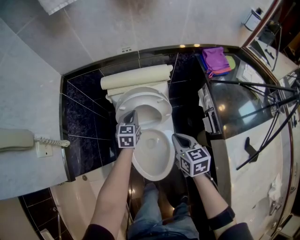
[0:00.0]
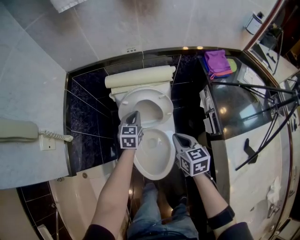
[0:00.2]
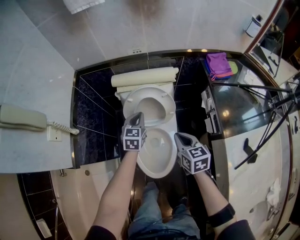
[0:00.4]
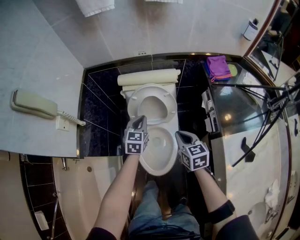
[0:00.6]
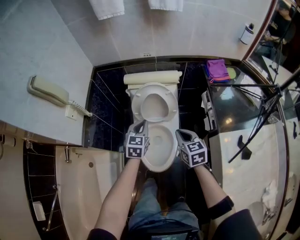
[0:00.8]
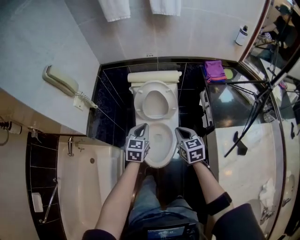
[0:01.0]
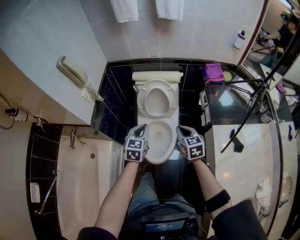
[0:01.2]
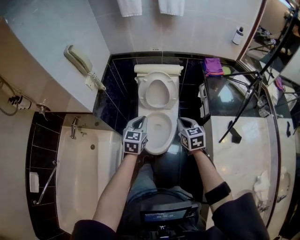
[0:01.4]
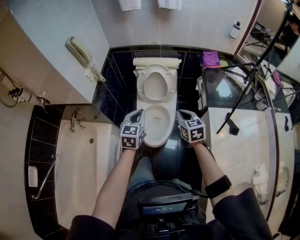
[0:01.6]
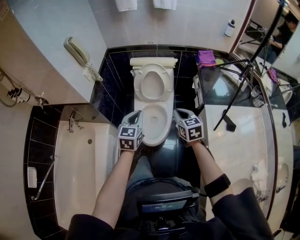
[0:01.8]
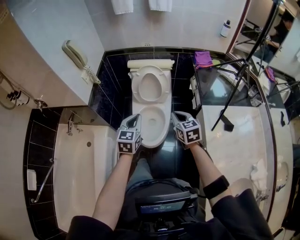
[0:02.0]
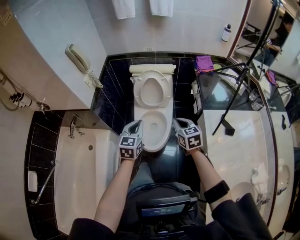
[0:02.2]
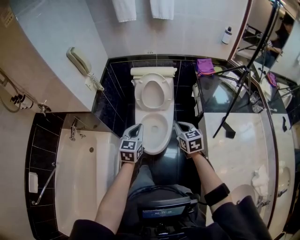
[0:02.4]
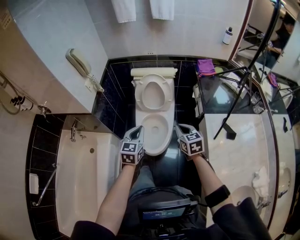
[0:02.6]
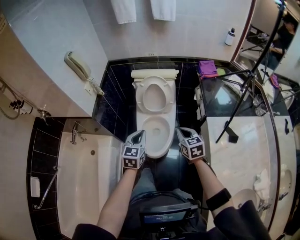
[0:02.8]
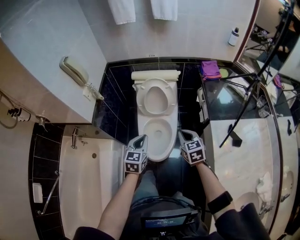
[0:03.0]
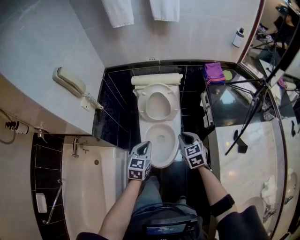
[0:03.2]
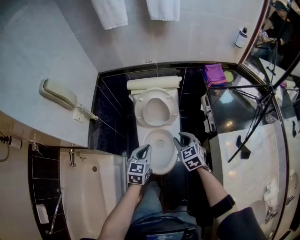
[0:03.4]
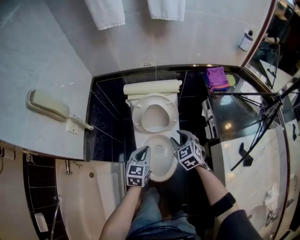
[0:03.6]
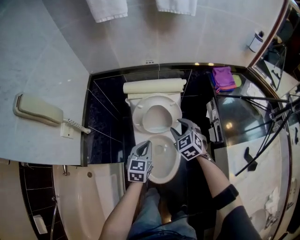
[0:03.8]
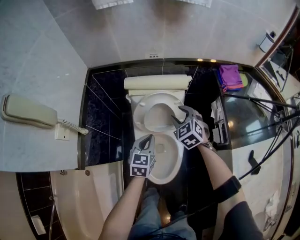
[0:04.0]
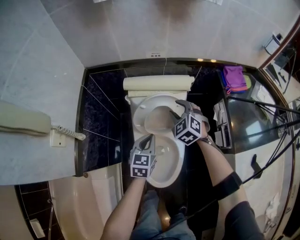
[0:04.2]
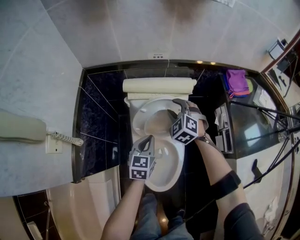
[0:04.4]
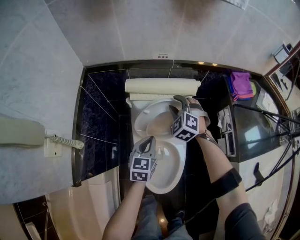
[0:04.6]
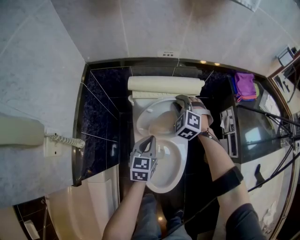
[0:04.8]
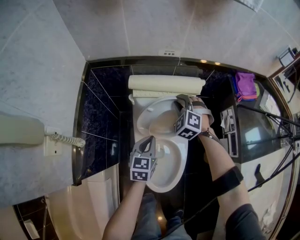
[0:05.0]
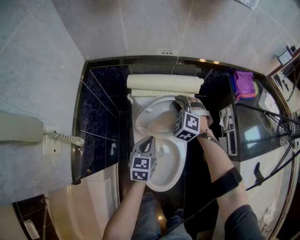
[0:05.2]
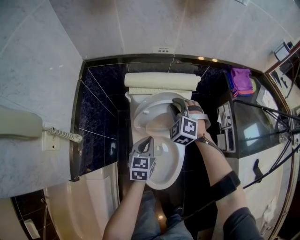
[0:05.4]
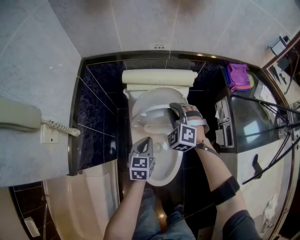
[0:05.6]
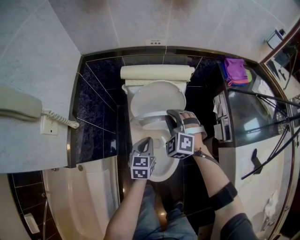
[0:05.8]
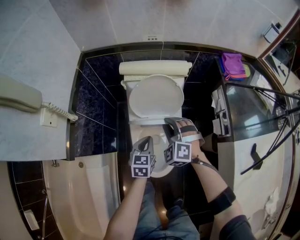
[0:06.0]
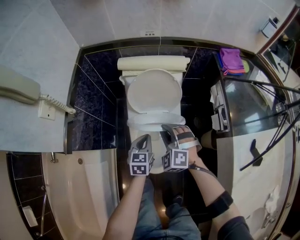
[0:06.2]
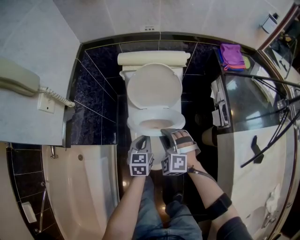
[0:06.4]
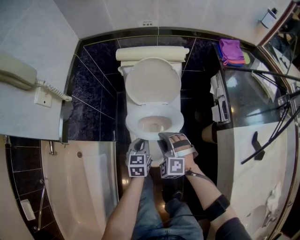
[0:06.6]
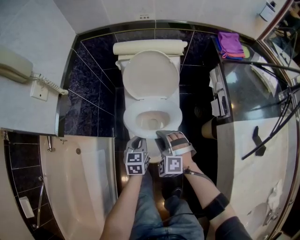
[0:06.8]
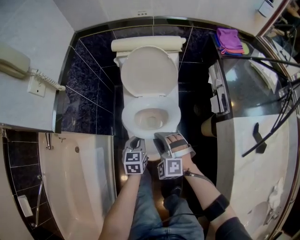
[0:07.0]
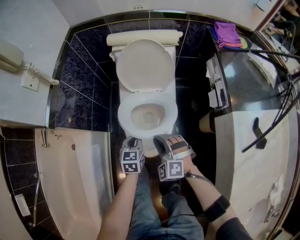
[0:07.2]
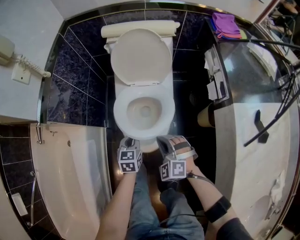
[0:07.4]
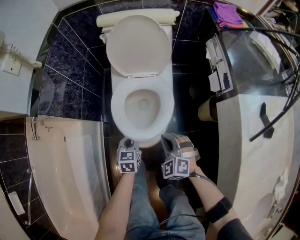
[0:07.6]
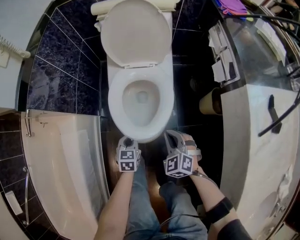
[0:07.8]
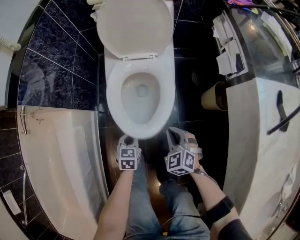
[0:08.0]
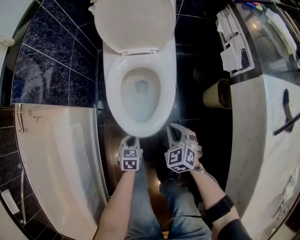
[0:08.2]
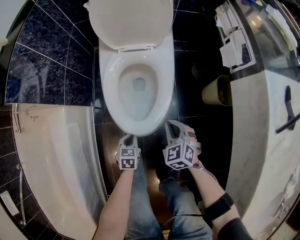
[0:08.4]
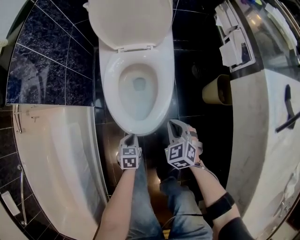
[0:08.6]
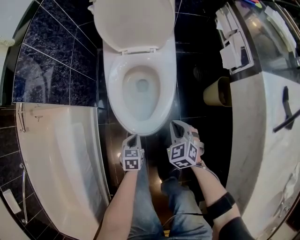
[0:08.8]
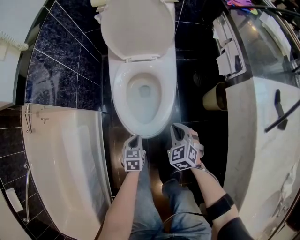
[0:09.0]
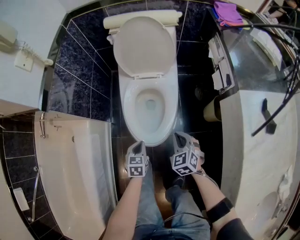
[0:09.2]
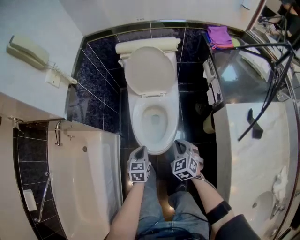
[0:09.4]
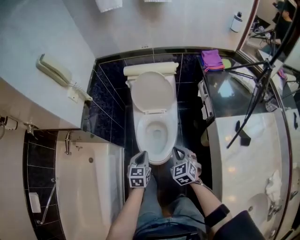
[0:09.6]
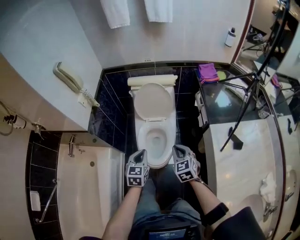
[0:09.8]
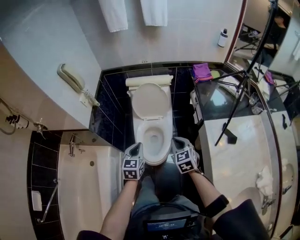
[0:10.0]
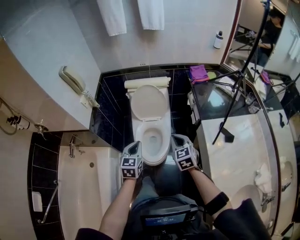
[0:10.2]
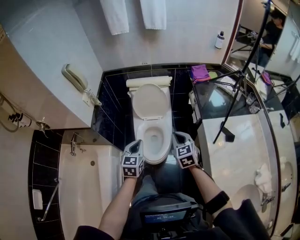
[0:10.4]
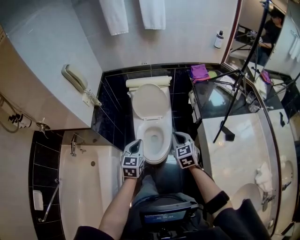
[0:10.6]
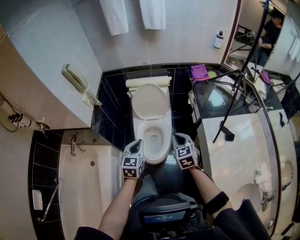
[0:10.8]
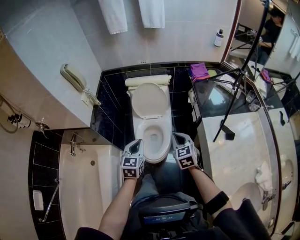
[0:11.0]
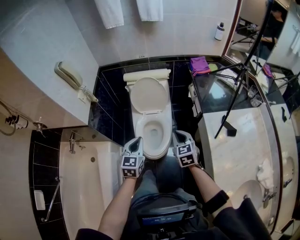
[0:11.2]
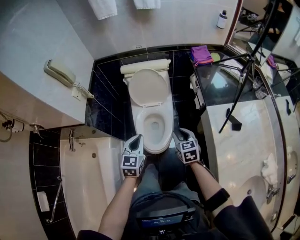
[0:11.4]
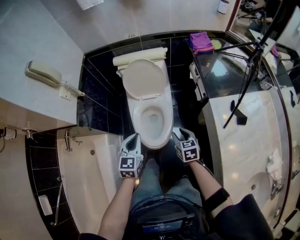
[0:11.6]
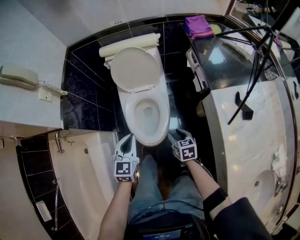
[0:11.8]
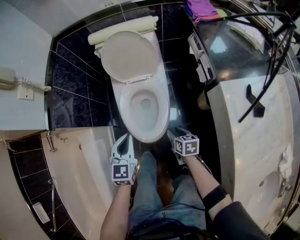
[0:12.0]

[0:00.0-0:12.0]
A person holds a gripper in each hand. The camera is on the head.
0:00.0 to 0:01.6: The right gripper is displaced backward and upward by roughly 25 cm; the left gripper is displaced backward and upward by about 50 cm.
0:01.6 to 0:03.0: The grippers move only a little.
0:03.0 to 0:04.4: The right gripper is displaced forward by roughly 40 cm, rolls counterclockwise, seen from behind, by roughly 40 degrees, and opens its fingers; the left gripper travels forward and downward by roughly 35 cm.
0:04.4 to 0:06.0: The left gripper heads backward and downward, covering about 10 cm. The right gripper goes about 20 cm backward, and closes up.
0:06.0 to 0:07.6: Both grippers travel together backward and downward, approximately 30 cm.
0:07.6 to 0:09.0: The left gripper shifts approximately 15 cm downward and backward, while the right gripper shifts approximately 10 cm downward, and rotates approximately 20 degrees.
0:09.0 to 0:10.4: The grippers both shift upward by approximately 50 cm. The right gripper turns by about 20 degrees; the left gripper turns by about 30 degrees.
0:10.4 to 0:12.0: The right gripper travels downward by approximately 40 cm, twists some 40 degrees clockwise, seen from behind, and opens up; the left gripper is displaced downward by roughly 20 cm.

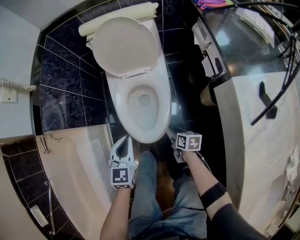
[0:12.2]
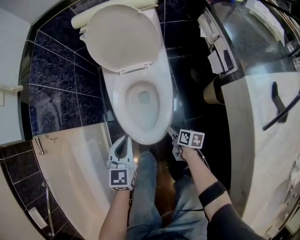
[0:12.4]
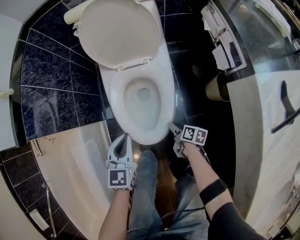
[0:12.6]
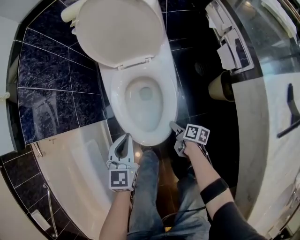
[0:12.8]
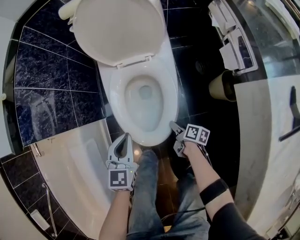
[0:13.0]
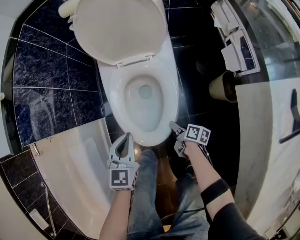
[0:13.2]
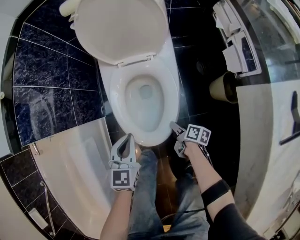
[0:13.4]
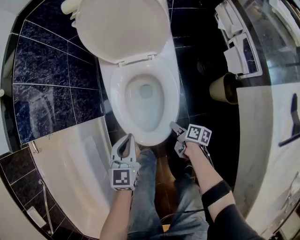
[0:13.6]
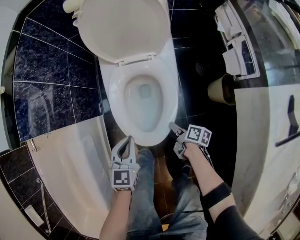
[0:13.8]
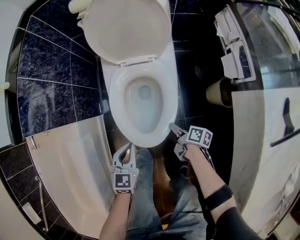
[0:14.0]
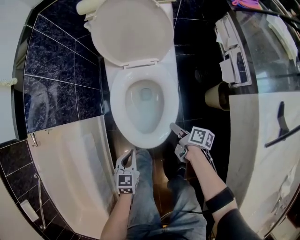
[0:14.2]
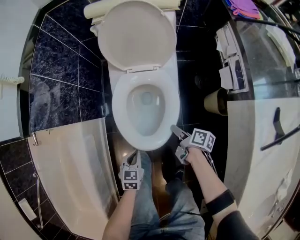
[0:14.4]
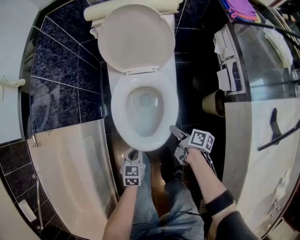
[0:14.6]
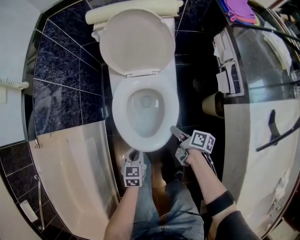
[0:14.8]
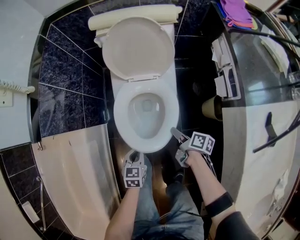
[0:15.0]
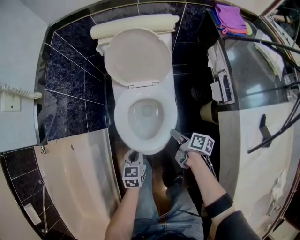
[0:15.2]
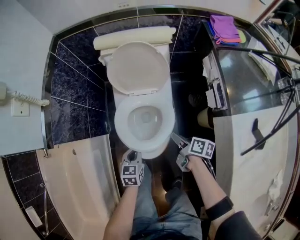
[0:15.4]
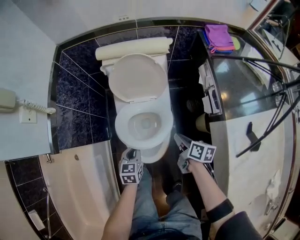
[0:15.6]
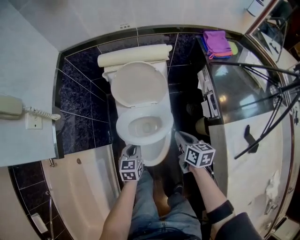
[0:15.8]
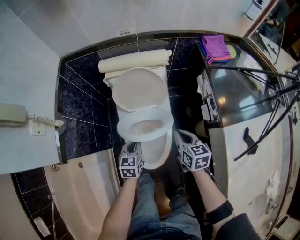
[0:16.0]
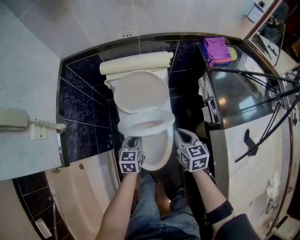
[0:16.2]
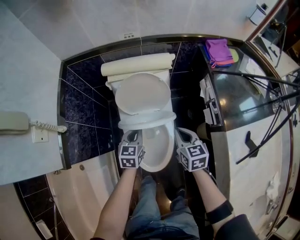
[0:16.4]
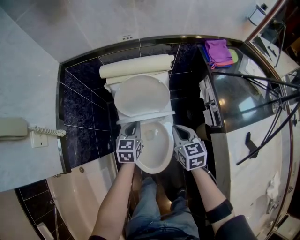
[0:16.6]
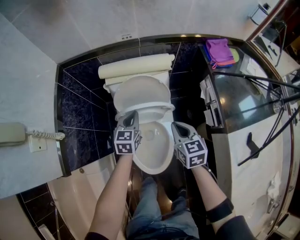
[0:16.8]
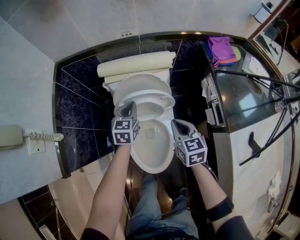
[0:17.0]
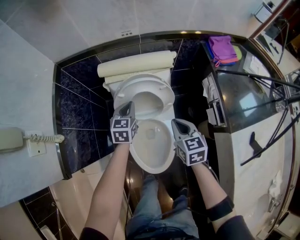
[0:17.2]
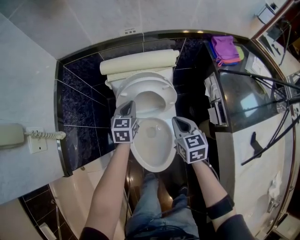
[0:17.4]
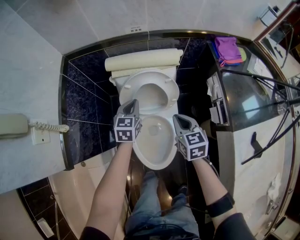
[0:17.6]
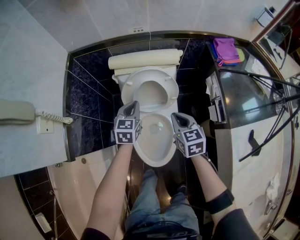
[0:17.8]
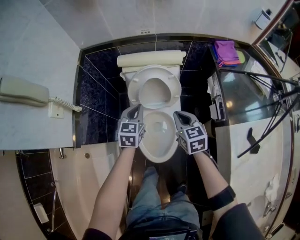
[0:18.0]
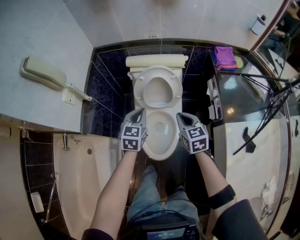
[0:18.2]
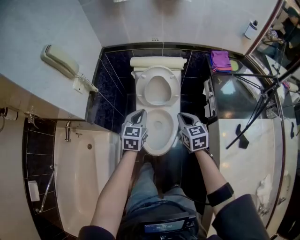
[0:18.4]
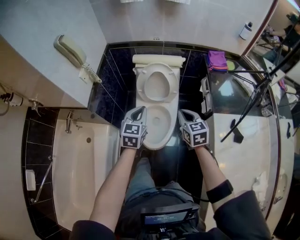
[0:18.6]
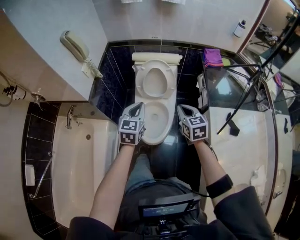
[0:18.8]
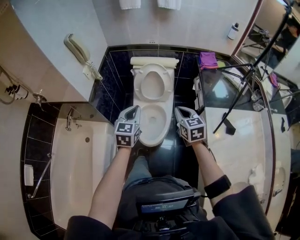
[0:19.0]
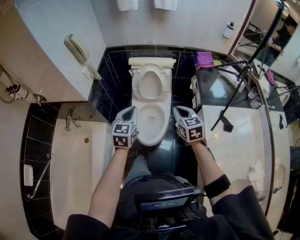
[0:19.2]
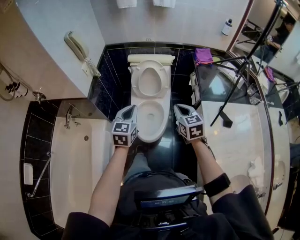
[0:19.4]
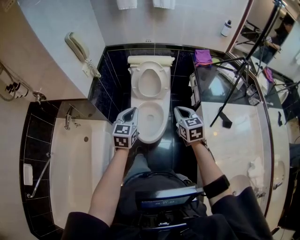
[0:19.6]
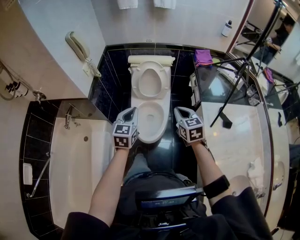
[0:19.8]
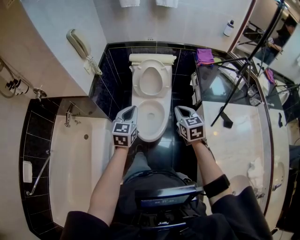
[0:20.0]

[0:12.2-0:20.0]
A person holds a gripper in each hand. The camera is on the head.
0:12.2 to 0:13.8: The grippers both shift downward by roughly 10 cm. The right gripper changes its angle by some 30 degrees.
0:13.8 to 0:15.4: The left gripper moves upward, some 5 cm, while the right gripper heads upward, covering some 25 cm.
0:15.4 to 0:16.8: The right gripper goes roughly 25 cm upward and forward, and rolls counterclockwise, seen from behind, by approximately 50 degrees, while the left gripper moves forward and upward, about 30 cm.
0:16.8 to 0:18.4: The left gripper goes approximately 25 cm backward and upward; the right gripper goes about 20 cm backward and upward.
0:18.4 to 0:20.0: Both grippers move backward and upward, approximately 20 cm.

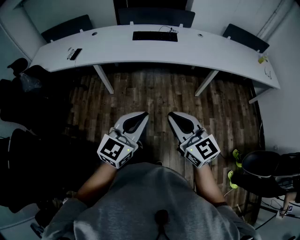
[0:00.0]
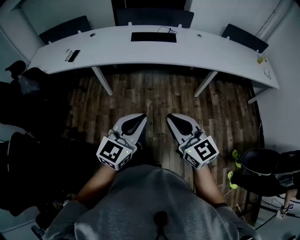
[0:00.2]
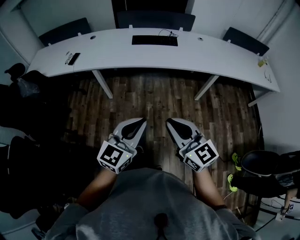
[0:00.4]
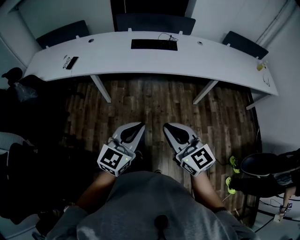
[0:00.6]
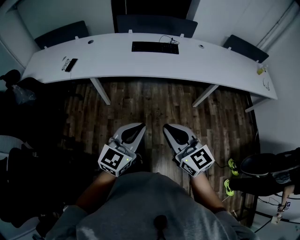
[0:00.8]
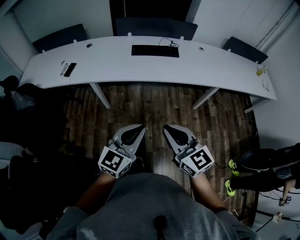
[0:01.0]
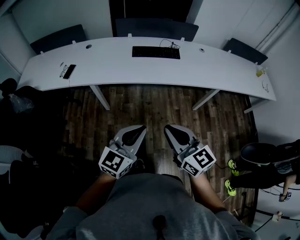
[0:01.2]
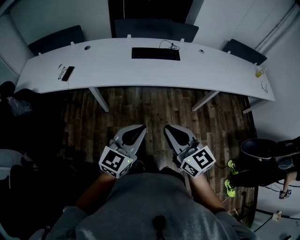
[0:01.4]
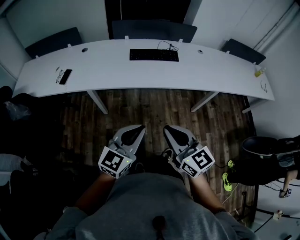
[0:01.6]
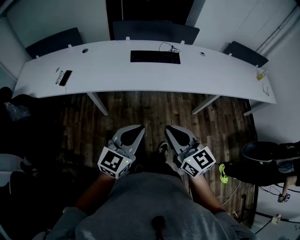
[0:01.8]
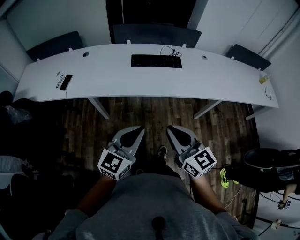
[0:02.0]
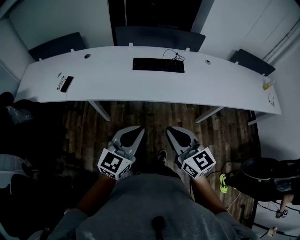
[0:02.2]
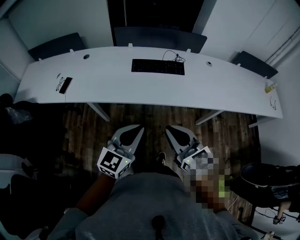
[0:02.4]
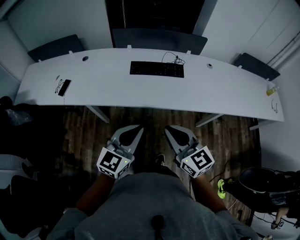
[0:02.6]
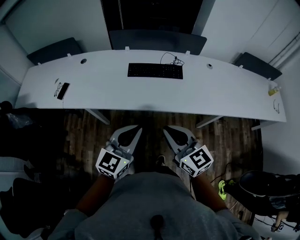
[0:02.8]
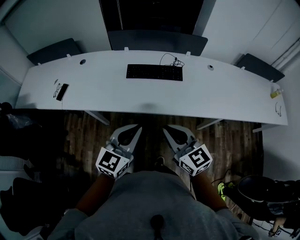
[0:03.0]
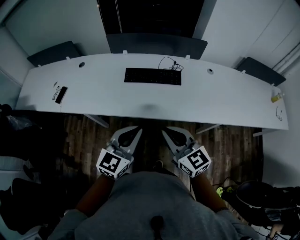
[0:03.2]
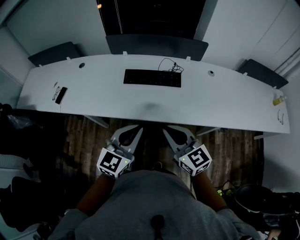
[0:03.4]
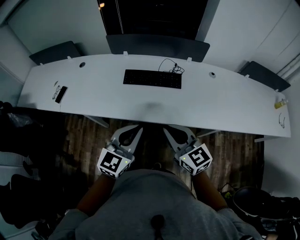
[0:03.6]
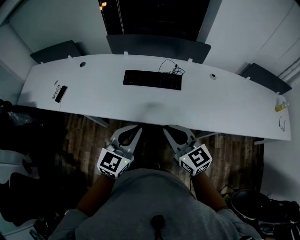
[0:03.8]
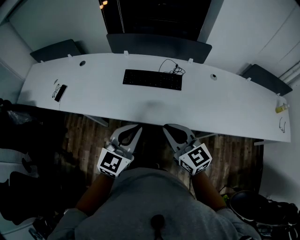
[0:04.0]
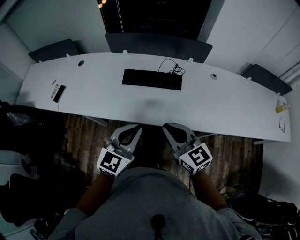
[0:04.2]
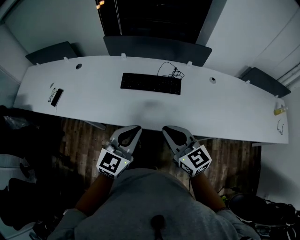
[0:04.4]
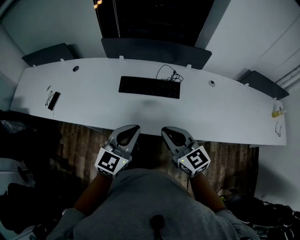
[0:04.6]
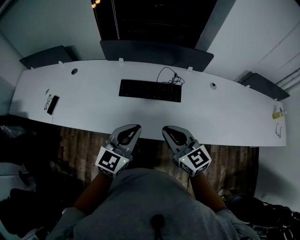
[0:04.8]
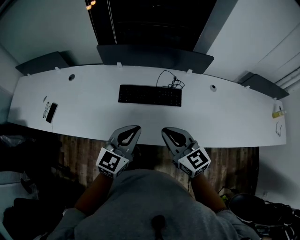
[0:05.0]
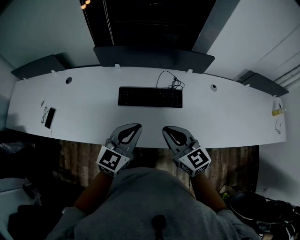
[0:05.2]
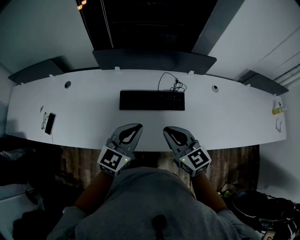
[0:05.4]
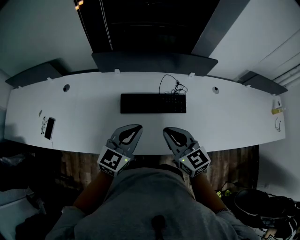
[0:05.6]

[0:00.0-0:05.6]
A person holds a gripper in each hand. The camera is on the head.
0:00.0 to 0:01.4: The two grippers go roughly 20 cm forward and to the left.
0:01.4 to 0:02.8: Both grippers move forward, roughly 20 cm.
0:02.8 to 0:04.2: Both grippers travel together forward and to the right, approximately 15 cm.
0:04.2 to 0:05.6: Both grippers travel together forward, about 20 cm.
